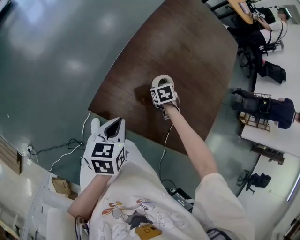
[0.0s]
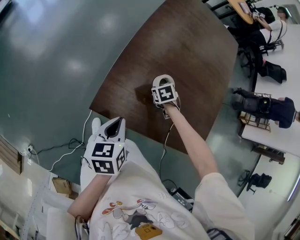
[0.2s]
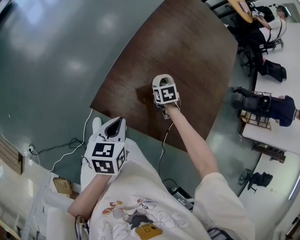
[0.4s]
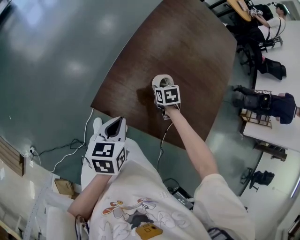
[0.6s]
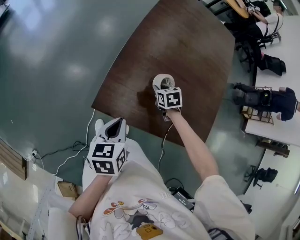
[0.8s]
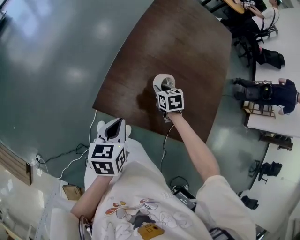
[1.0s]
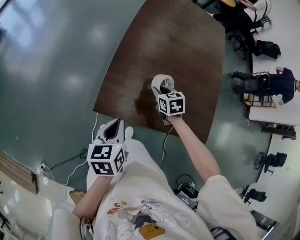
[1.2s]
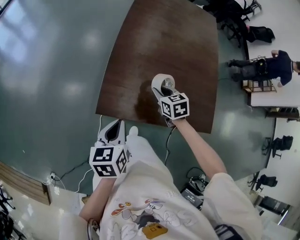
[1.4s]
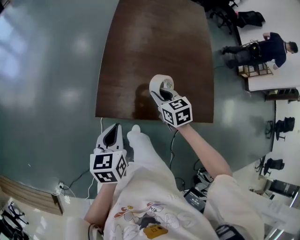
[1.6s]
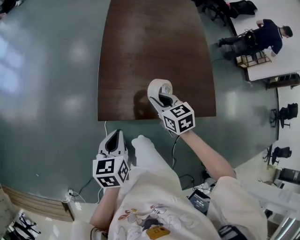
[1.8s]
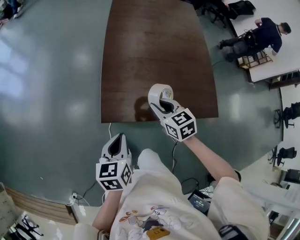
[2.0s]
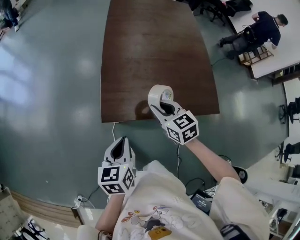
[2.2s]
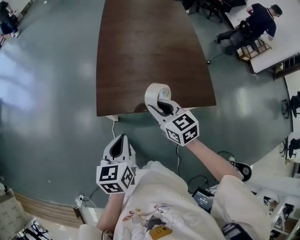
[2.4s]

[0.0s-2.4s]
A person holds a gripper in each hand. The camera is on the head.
0.0s to 1.2s: The left gripper shifts by some 5 cm, while the right gripper shifts some 10 cm upward, and swivels approximately 30 degrees.
1.2s to 2.4s: The right gripper travels backward and upward by roughly 30 cm, and turns by roughly 20 degrees, while the left gripper shifts roughly 15 cm backward, upward and to the right.

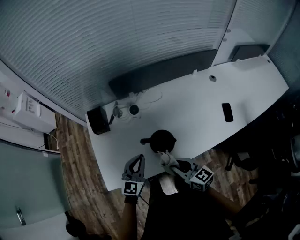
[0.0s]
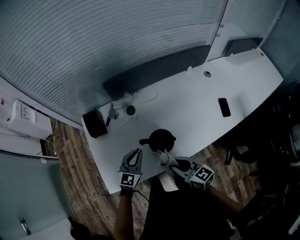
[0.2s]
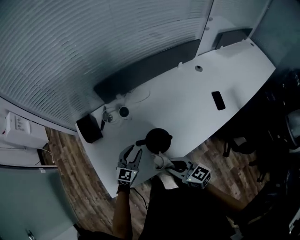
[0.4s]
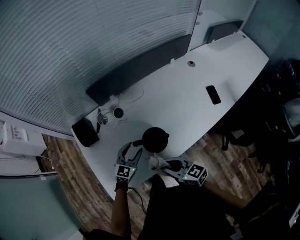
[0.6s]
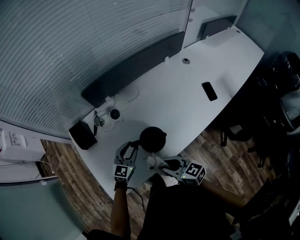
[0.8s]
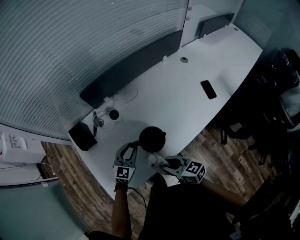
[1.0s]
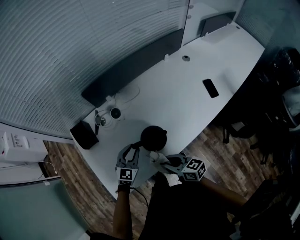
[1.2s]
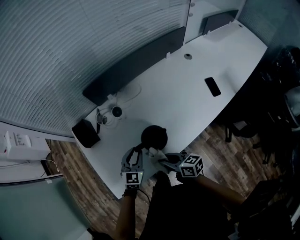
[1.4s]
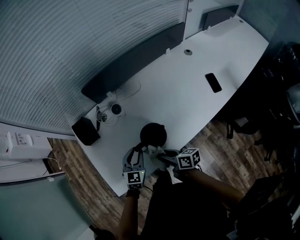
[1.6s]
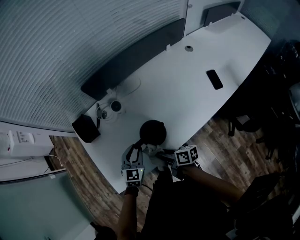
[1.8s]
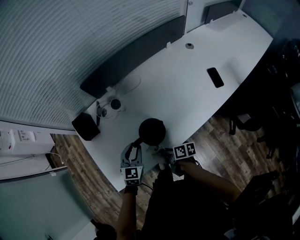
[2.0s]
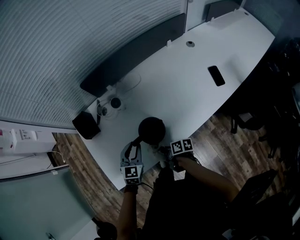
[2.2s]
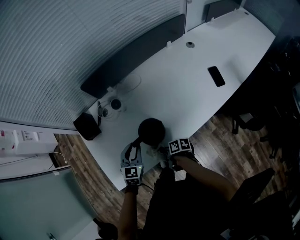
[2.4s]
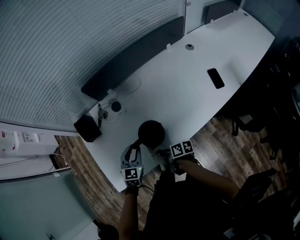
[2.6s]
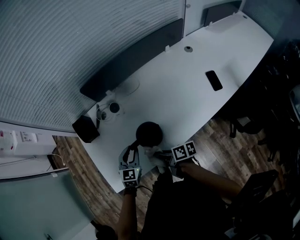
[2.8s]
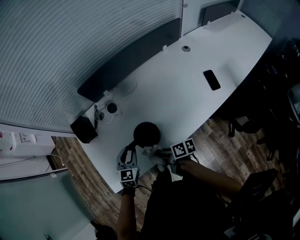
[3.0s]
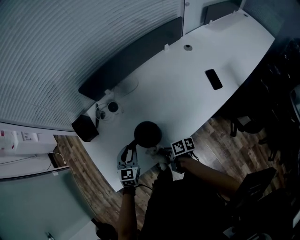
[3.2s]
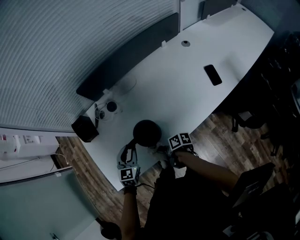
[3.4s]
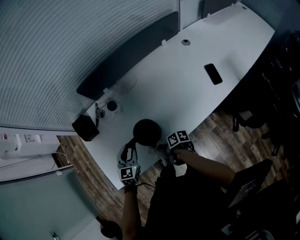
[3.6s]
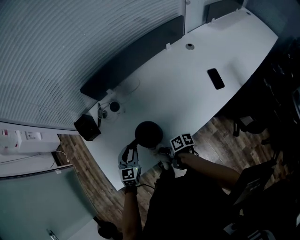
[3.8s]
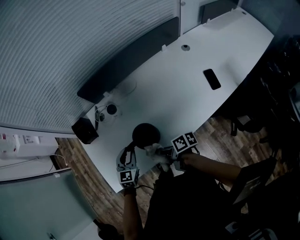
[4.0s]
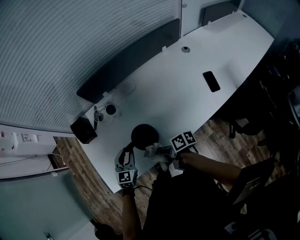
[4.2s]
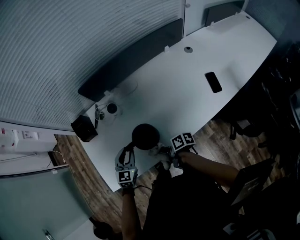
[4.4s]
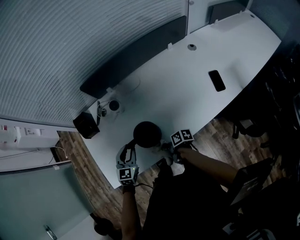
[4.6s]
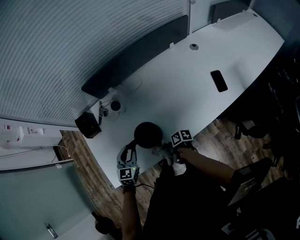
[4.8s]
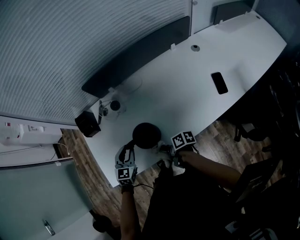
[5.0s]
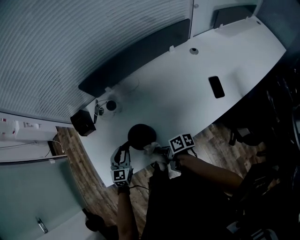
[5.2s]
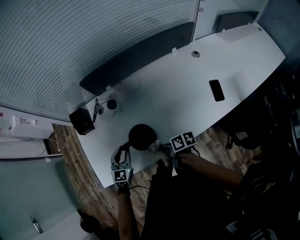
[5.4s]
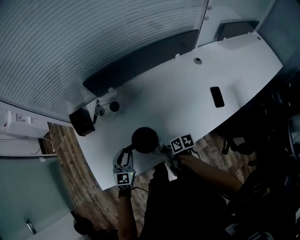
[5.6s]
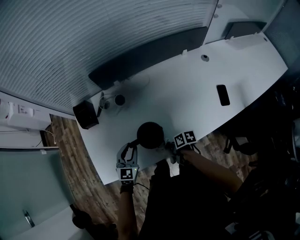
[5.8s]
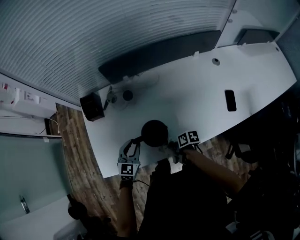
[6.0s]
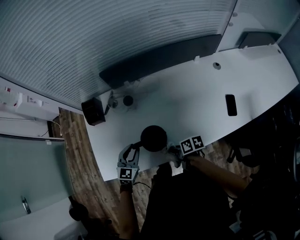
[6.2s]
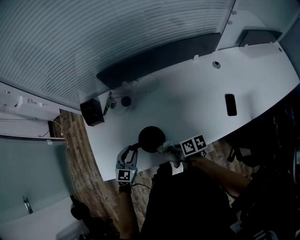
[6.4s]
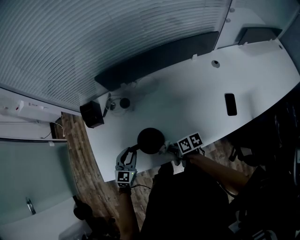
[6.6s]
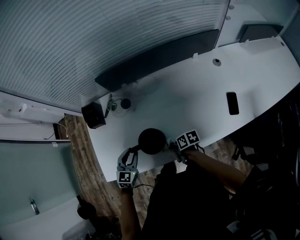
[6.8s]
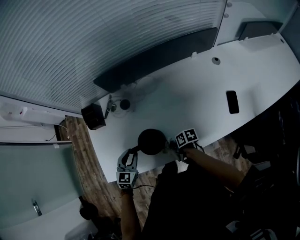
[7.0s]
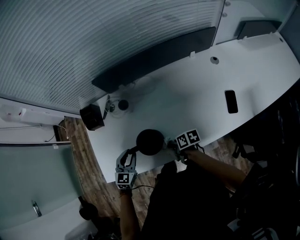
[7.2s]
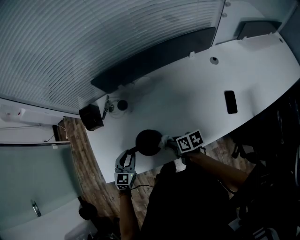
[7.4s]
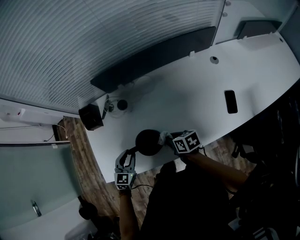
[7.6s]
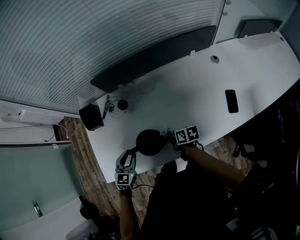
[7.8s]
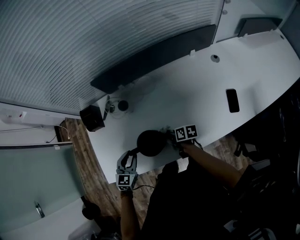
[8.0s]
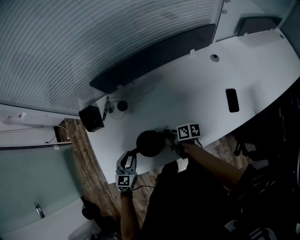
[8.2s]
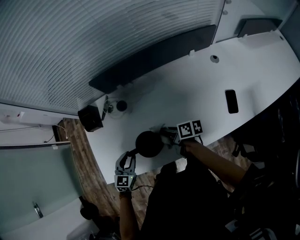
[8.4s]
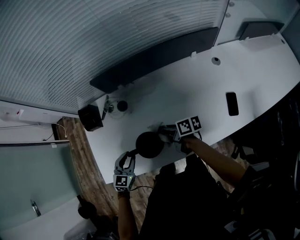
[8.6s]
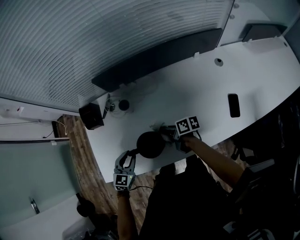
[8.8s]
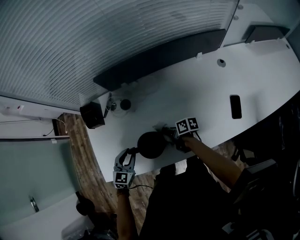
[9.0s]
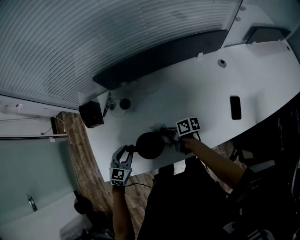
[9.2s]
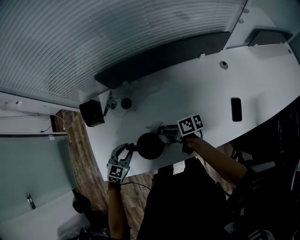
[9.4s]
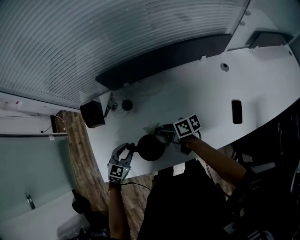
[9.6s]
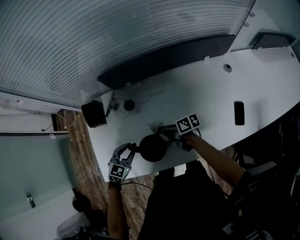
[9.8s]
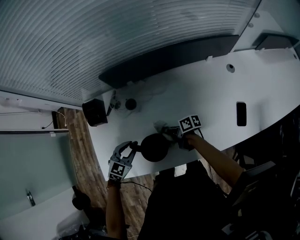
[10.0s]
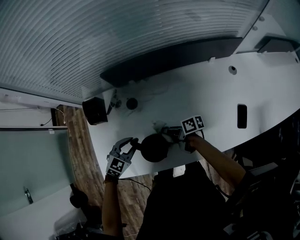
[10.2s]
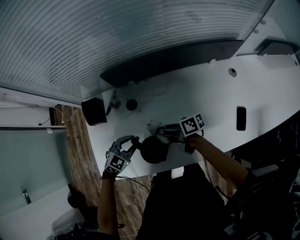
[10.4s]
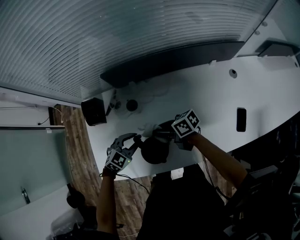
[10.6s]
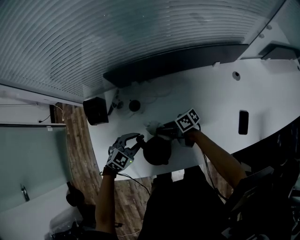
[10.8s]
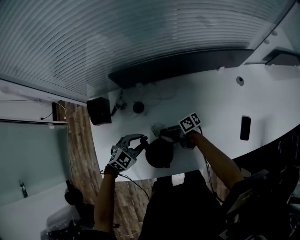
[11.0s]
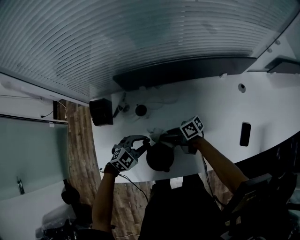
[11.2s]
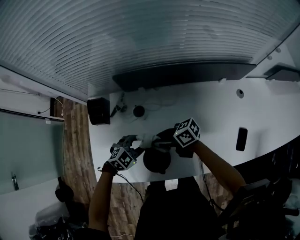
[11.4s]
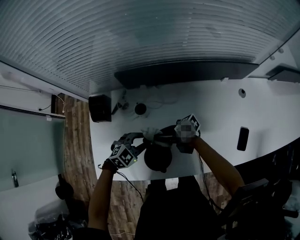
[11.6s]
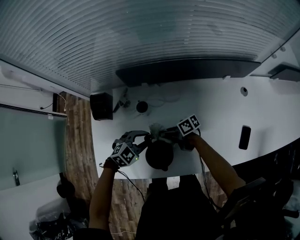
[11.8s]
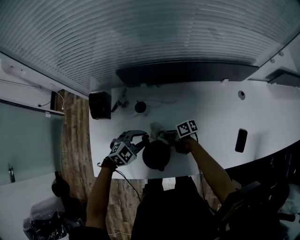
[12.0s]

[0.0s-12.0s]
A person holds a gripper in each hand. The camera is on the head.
0.0s to 1.6s: Both grippers travel together downward, some 10 cm. The left gripper opens its fingers, while the right gripper rotates approximately 40 degrees.
1.6s to 3.0s: The right gripper goes downward and returns, approximately 15 cm each way.
3.0s to 4.4s: The right gripper swings up and down, roughly 10 cm each way, with 2 reversals.
4.4s to 6.0s: The right gripper goes up and down, some 10 cm each way, reversing 2 times, and changes its angle by roughly 20 degrees.
6.0s to 7.6s: The right gripper goes up and down, approximately 10 cm each way, reversing 2 times, and changes its angle by roughly 30 degrees.
7.6s to 9.0s: The right gripper moves up and down over about 10 cm, changing direction 2 times, and rotates roughly 20 degrees.
9.0s to 10.4s: The right gripper swings up and down, some 10 cm each way, with 2 reversals, and rotates roughly 20 degrees. The left gripper is displaced forward by approximately 5 cm, and turns by about 30 degrees.
10.4s to 12.0s: The right gripper moves up and down over approximately 15 cm, changing direction 2 times.

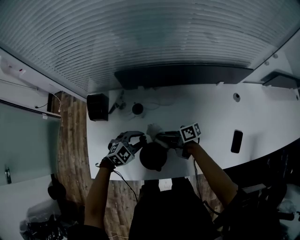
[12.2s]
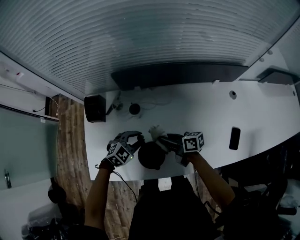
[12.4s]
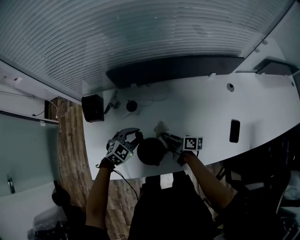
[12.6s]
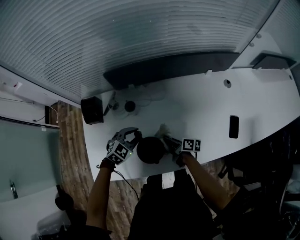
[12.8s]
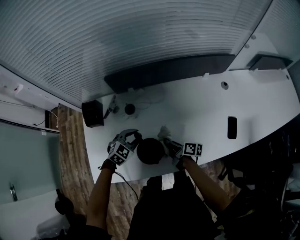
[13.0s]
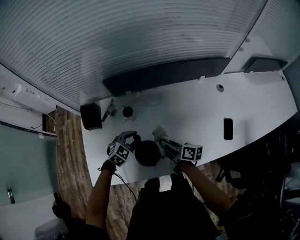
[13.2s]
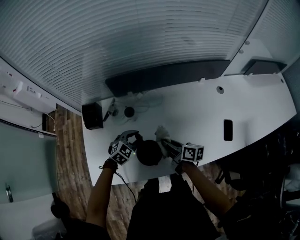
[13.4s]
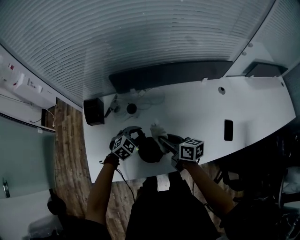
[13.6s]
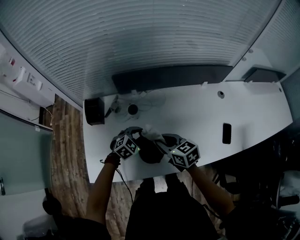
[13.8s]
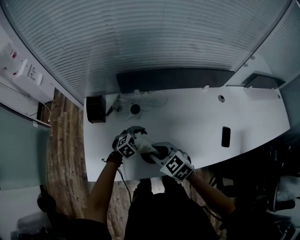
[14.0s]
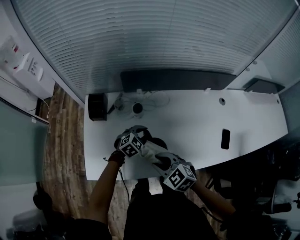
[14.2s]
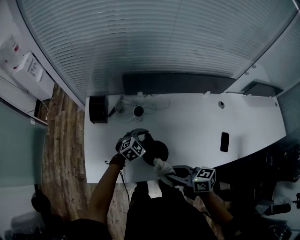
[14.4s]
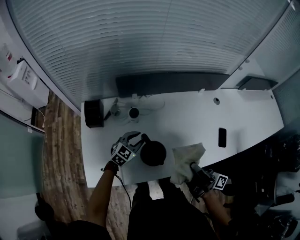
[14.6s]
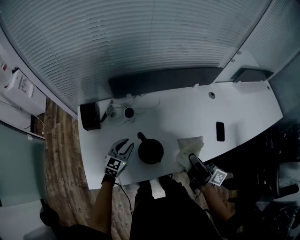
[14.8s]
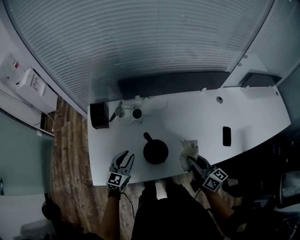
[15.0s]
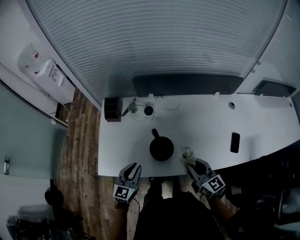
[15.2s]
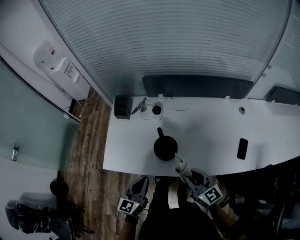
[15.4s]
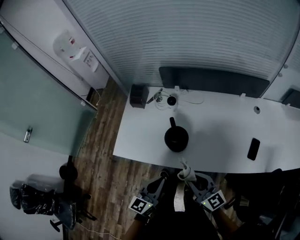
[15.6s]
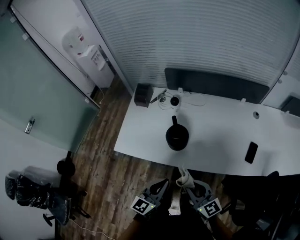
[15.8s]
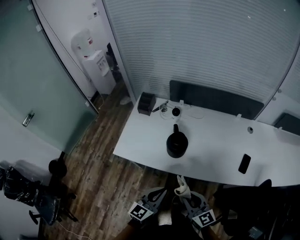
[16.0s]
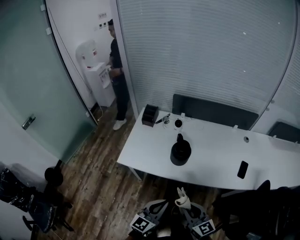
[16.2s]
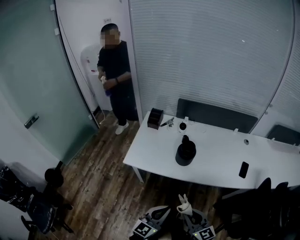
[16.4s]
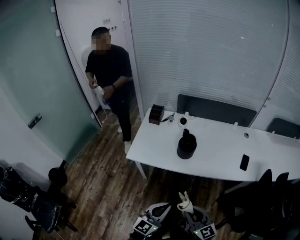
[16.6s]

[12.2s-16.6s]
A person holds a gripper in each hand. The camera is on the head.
12.2s to 13.6s: The right gripper goes about 10 cm upward, and swivels about 30 degrees.
13.6s to 15.2s: The right gripper shifts roughly 15 cm backward, to the right and upward, and changes its angle by approximately 30 degrees. Meanwhile the left gripper travels backward, to the left and upward by about 20 cm, and angles its fingers upward, by approximately 30 degrees.
15.2s to 16.6s: Both grippers move backward, approximately 35 cm.

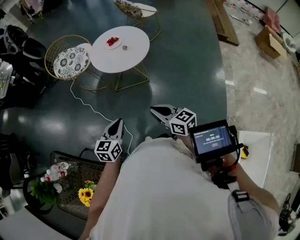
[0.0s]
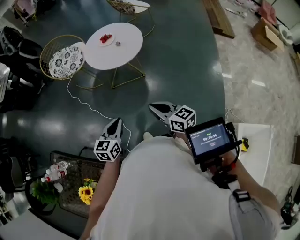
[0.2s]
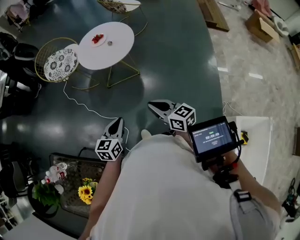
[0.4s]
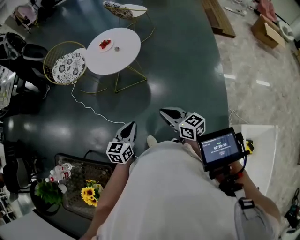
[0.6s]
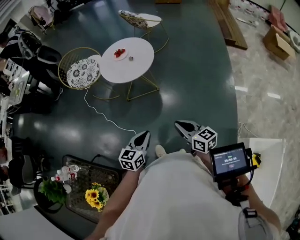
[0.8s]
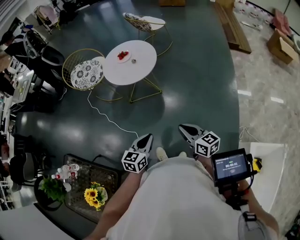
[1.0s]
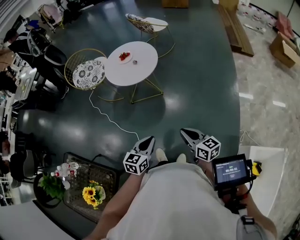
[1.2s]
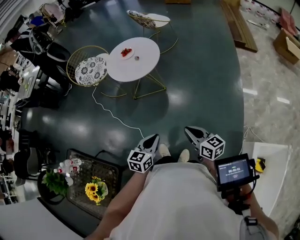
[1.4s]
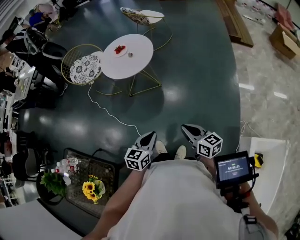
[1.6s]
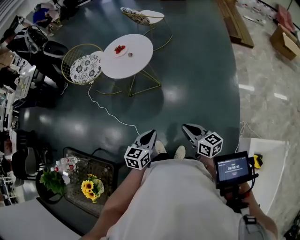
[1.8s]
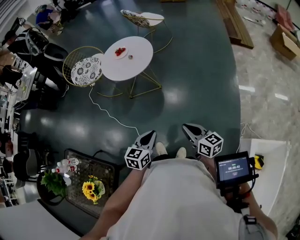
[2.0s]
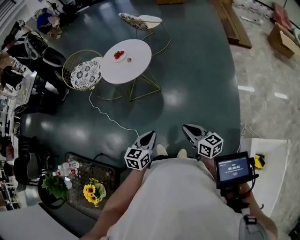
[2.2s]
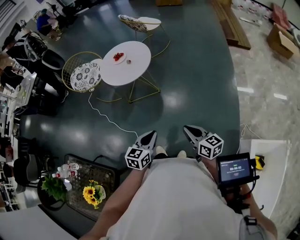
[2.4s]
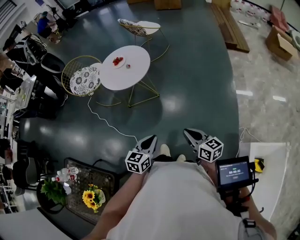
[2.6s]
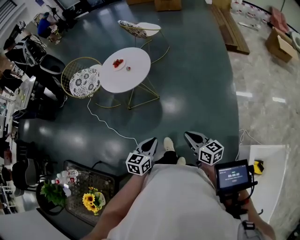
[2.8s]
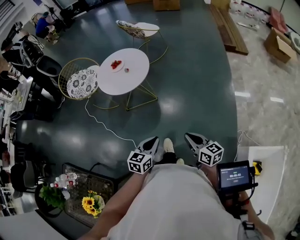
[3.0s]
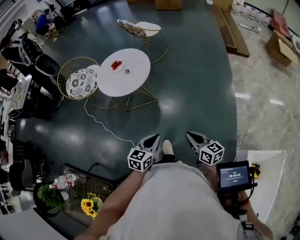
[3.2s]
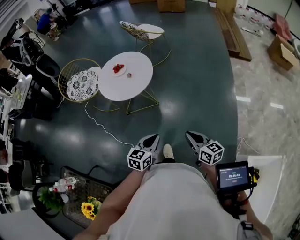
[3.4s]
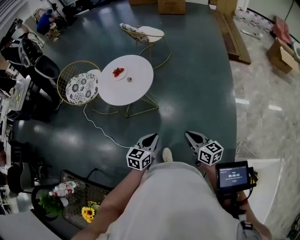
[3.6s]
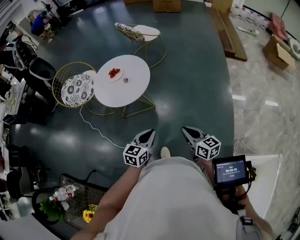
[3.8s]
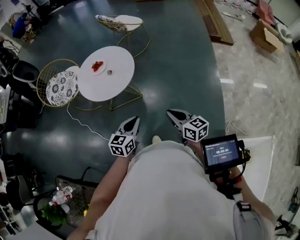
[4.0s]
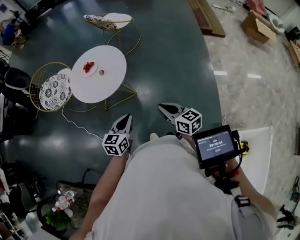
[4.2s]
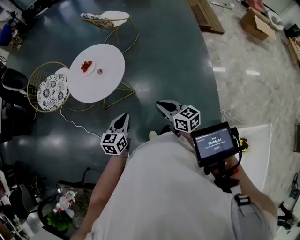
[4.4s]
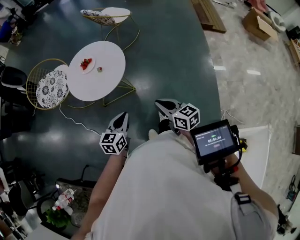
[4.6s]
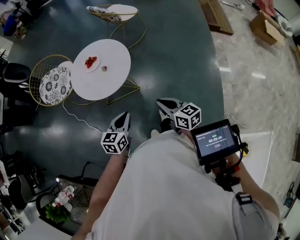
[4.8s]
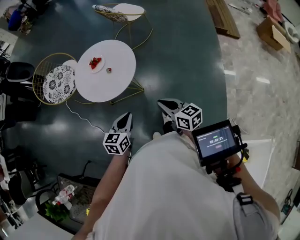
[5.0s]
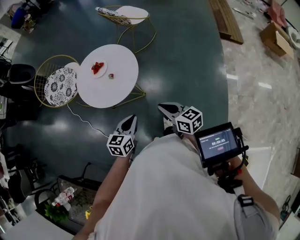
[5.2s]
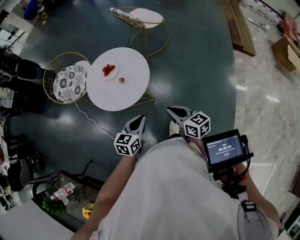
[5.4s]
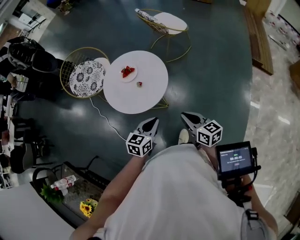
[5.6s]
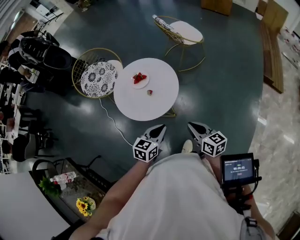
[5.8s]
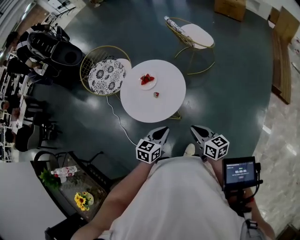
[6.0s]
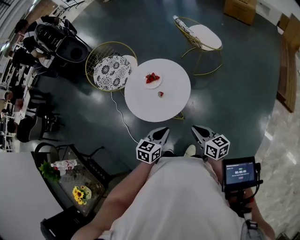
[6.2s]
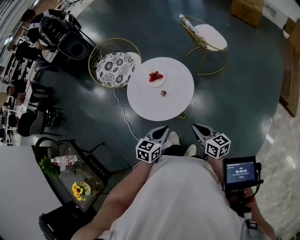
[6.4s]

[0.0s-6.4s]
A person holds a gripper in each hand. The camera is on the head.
0.0s to 1.6s: Both grippers travel together to the right and backward, roughly 20 cm.
1.6s to 3.2s: The two grippers go approximately 10 cm forward.
3.2s to 4.8s: The two grippers go some 20 cm forward.
4.8s to 6.4s: The grippers both shift forward by some 15 cm. The right gripper swivels roughly 20 degrees.
